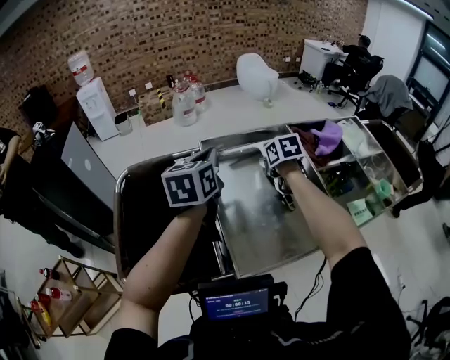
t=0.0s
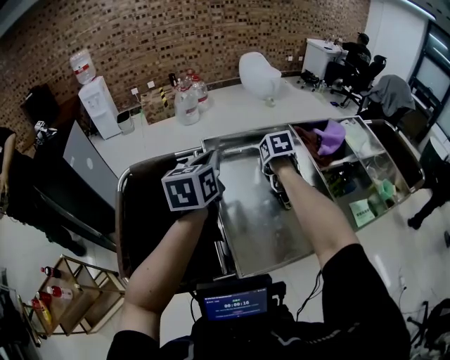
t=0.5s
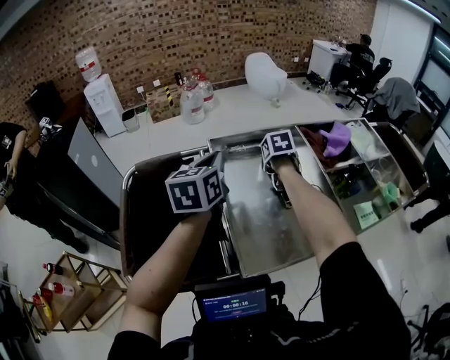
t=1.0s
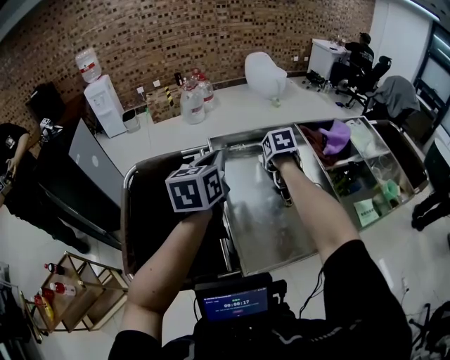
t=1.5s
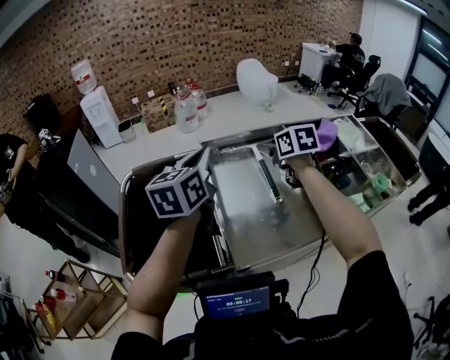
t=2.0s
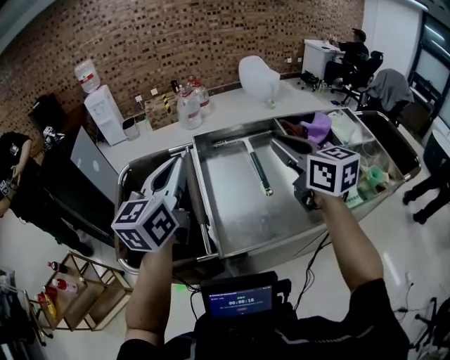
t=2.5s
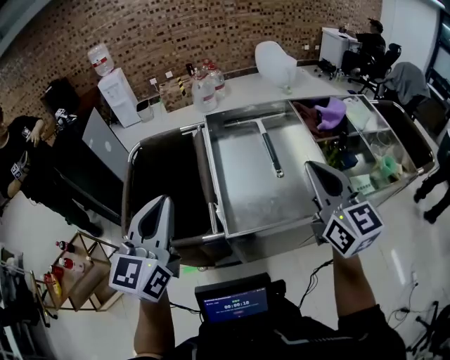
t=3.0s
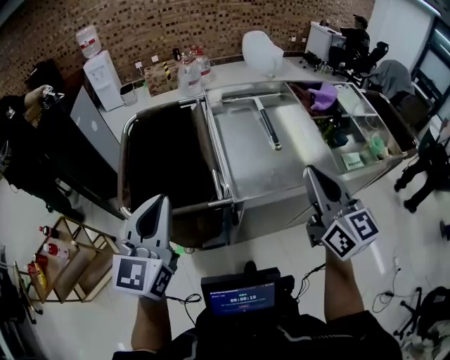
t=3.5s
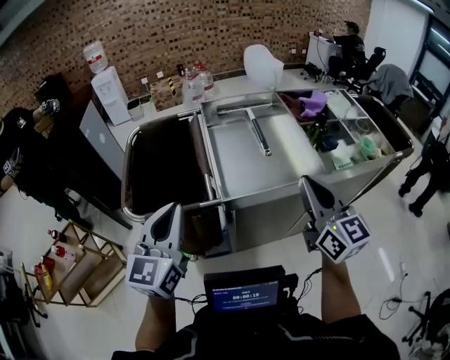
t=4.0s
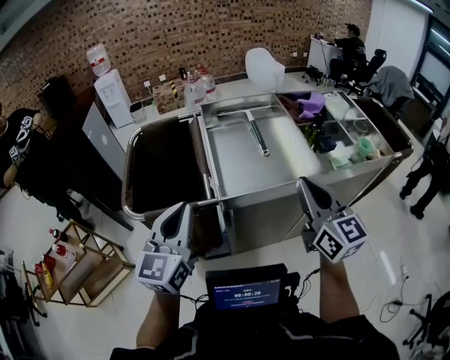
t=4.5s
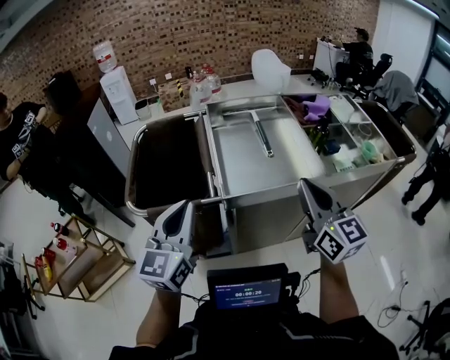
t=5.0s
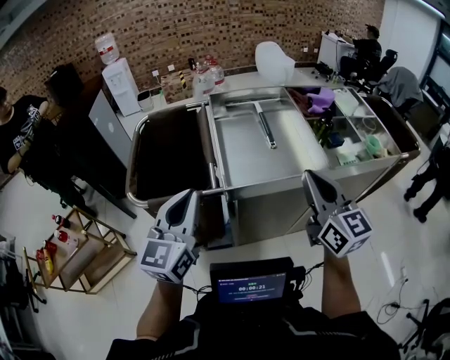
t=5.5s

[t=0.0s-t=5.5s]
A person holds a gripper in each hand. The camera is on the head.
t=0.0s to t=2.0s: The right gripper heads upward, covering roughly 10 cm, and opens. The left gripper travels backward and upward by roughly 10 cm.
t=2.0s to t=3.5s: Both grippers travel together backward, roughly 35 cm. The right gripper tilts its fingers some 40 degrees upward, and closes up, while the left gripper swivels roughly 20 degrees.
t=3.5s to t=5.5s: The left gripper moves to the right and backward, approximately 10 cm; the right gripper goes about 10 cm backward and to the right.

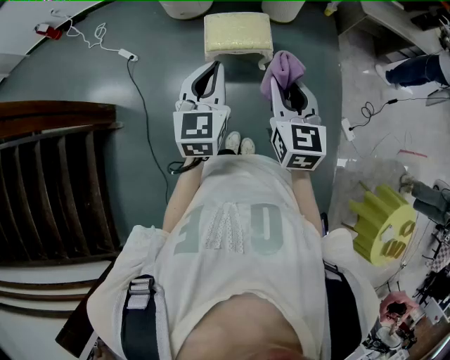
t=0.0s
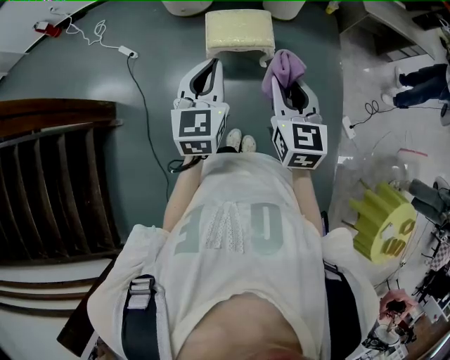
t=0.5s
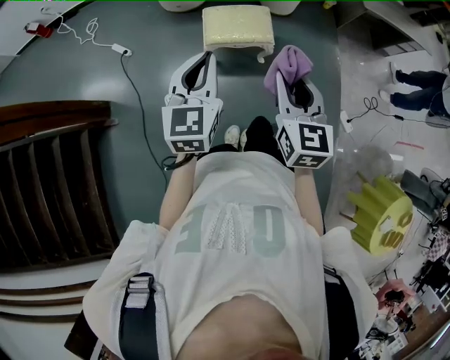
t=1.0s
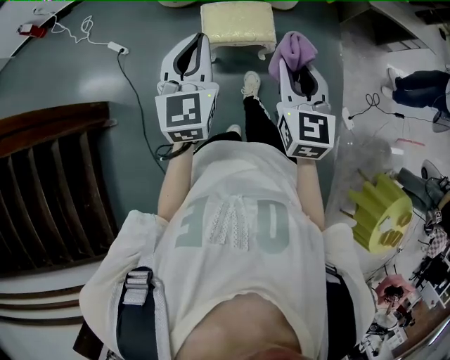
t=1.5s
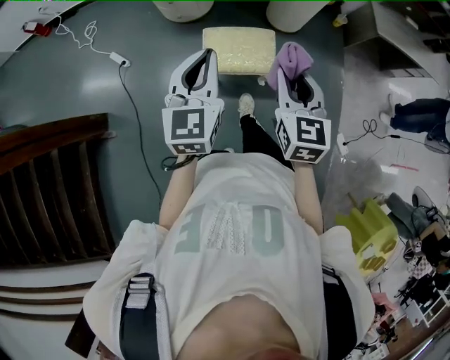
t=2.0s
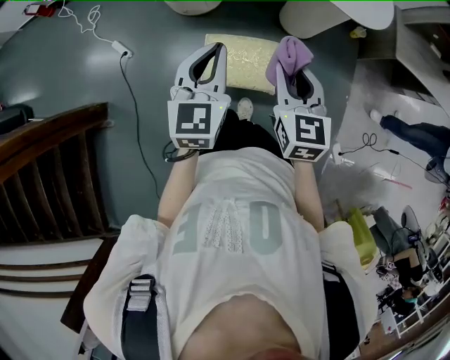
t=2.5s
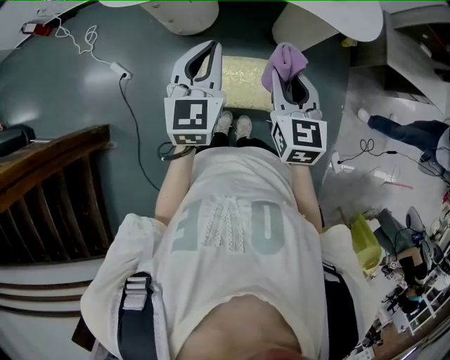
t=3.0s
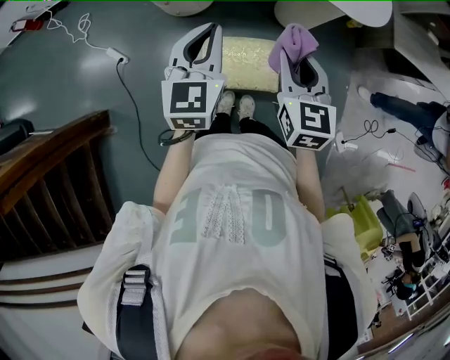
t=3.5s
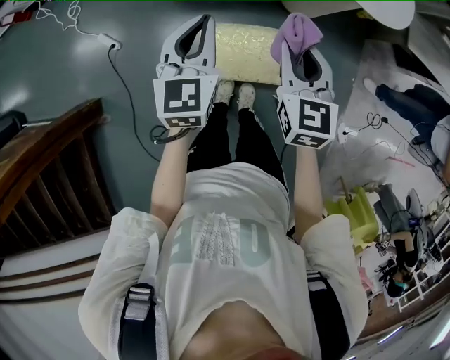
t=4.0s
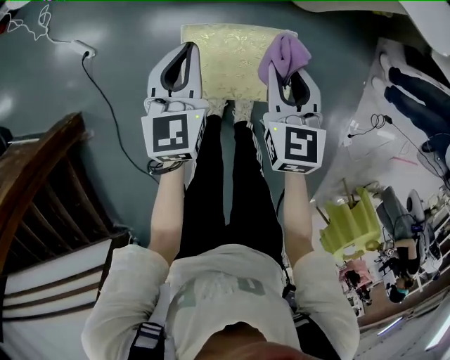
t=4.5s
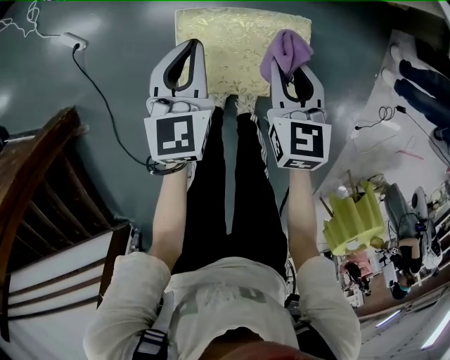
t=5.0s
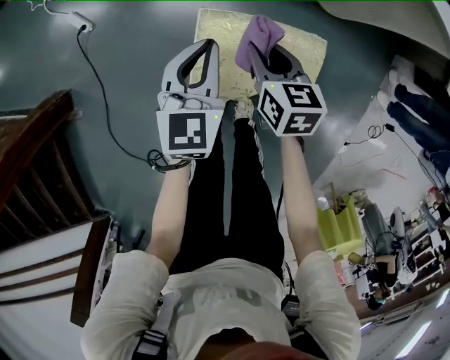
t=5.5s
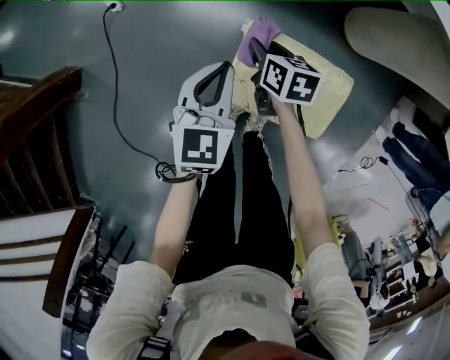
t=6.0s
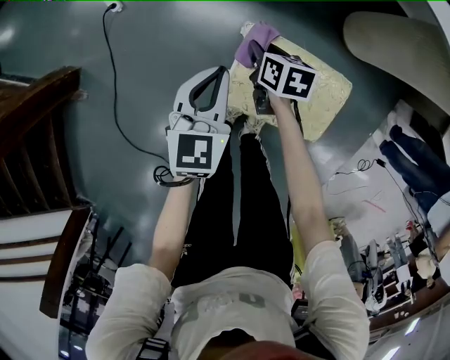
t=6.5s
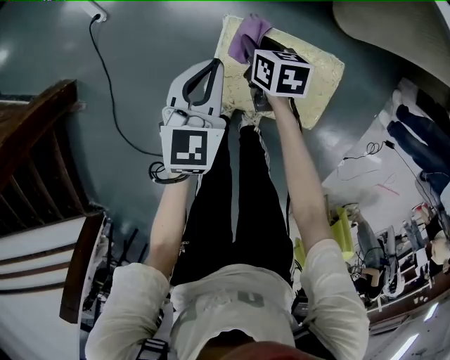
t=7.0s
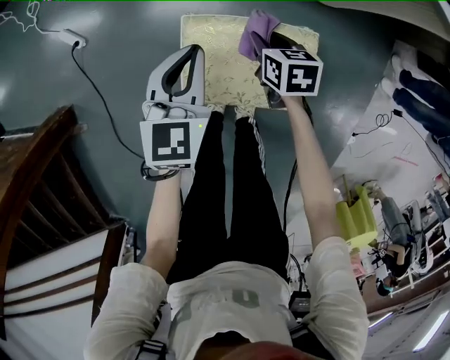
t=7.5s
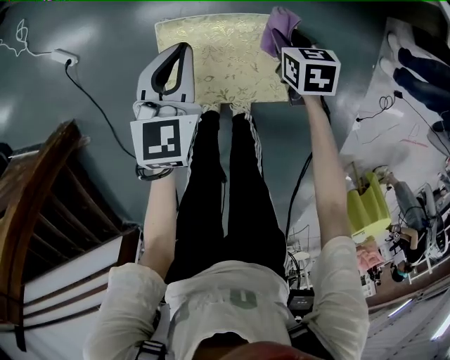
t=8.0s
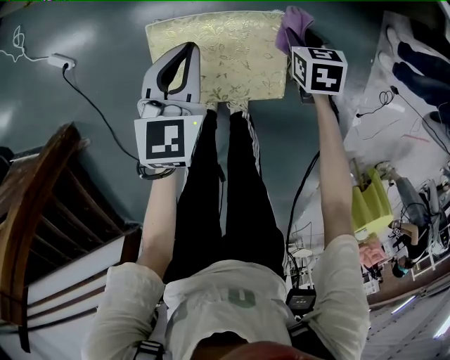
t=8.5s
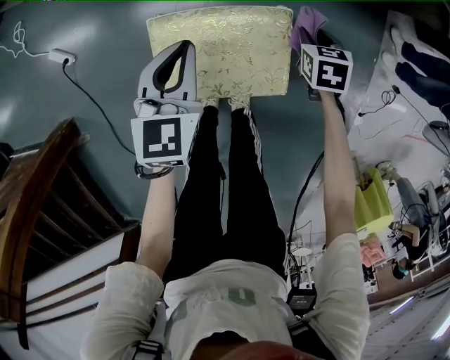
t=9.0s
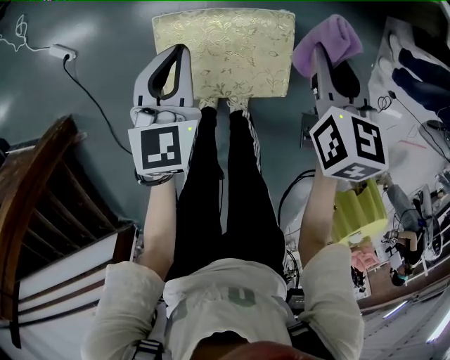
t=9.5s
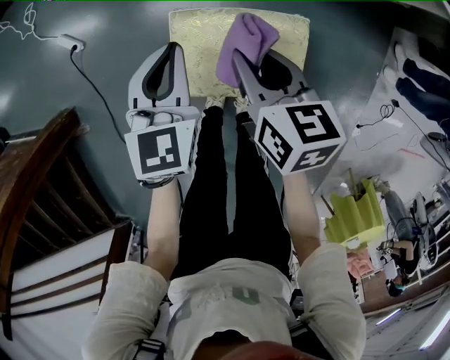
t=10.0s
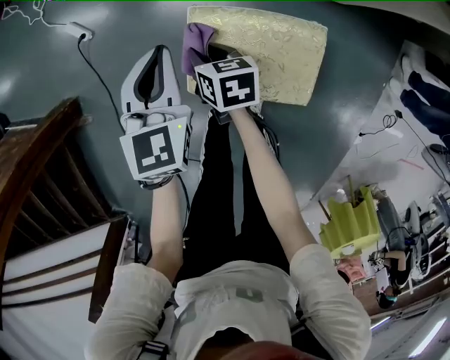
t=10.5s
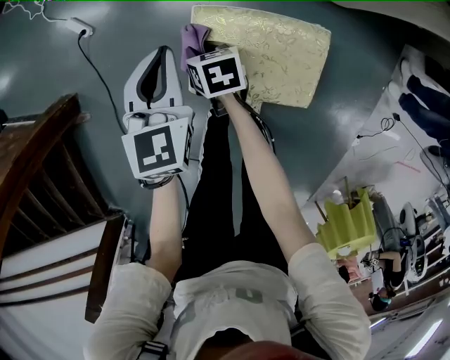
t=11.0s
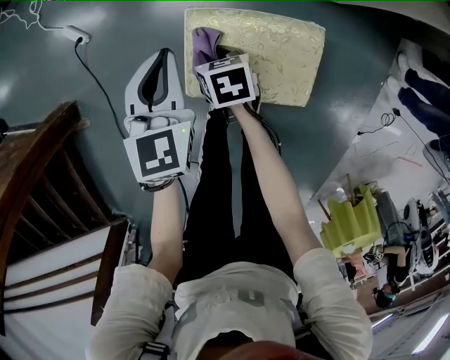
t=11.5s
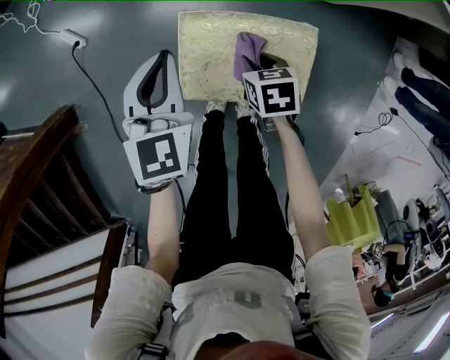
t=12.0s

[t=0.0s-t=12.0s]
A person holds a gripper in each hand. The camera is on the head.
t=0.0s to t=2.0s: The two grippers go about 20 cm forward.
t=2.0s to t=4.0s: The two grippers go some 25 cm forward.
t=4.0s to t=6.0s: Both grippers move downward and to the left, some 40 cm. The right gripper swivels some 50 degrees.
t=6.0s to t=8.0s: The left gripper shifts about 15 cm to the right. Meanwhile the right gripper moves to the right, some 25 cm.
t=8.0s to t=10.0s: The right gripper goes roughly 20 cm upward and to the left, and swivels roughly 20 degrees; the left gripper moves approximately 5 cm.
t=10.0s to t=12.0s: The right gripper is displaced downward by about 15 cm, and changes its angle by roughly 30 degrees.

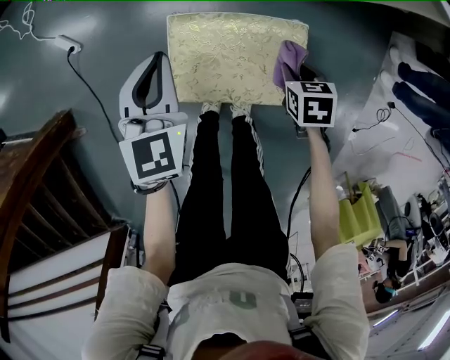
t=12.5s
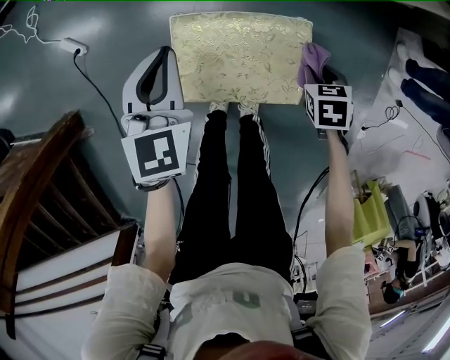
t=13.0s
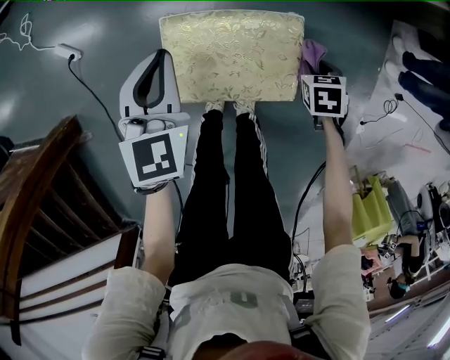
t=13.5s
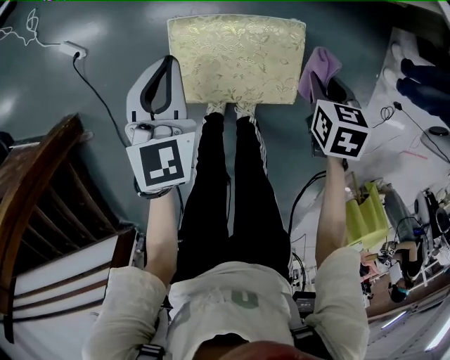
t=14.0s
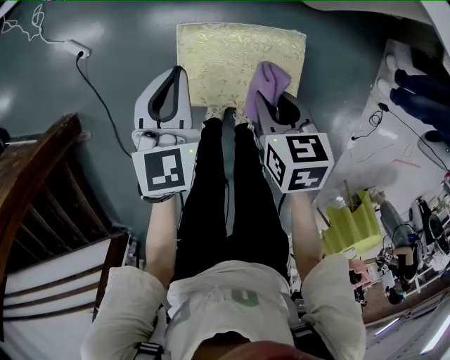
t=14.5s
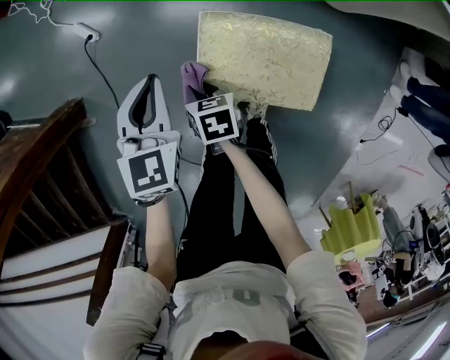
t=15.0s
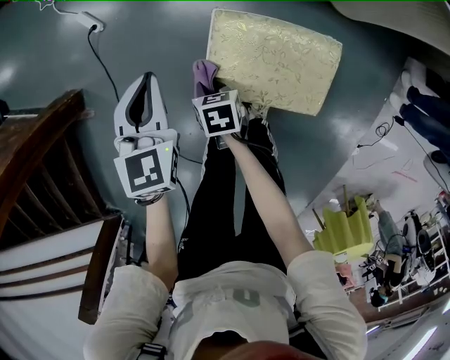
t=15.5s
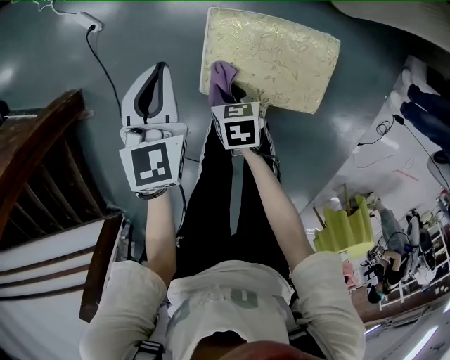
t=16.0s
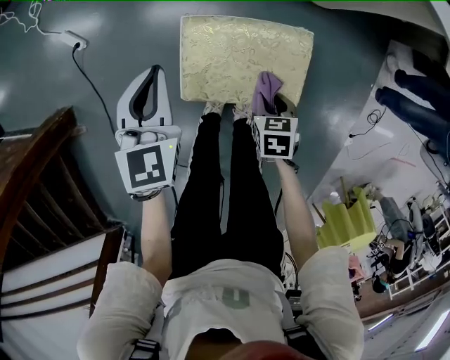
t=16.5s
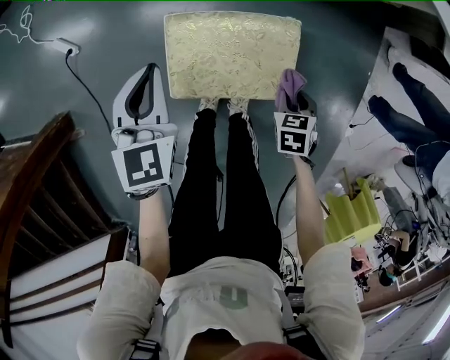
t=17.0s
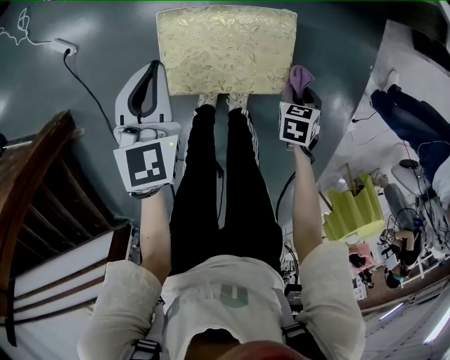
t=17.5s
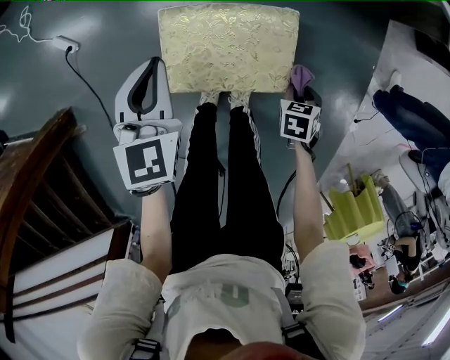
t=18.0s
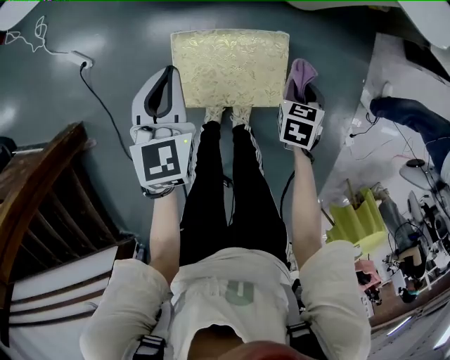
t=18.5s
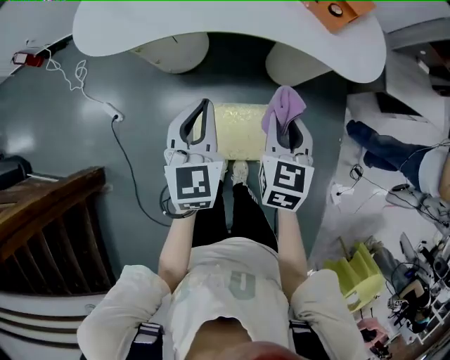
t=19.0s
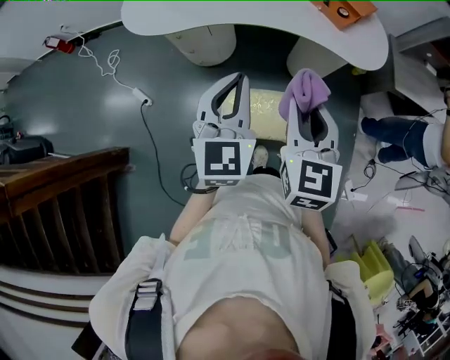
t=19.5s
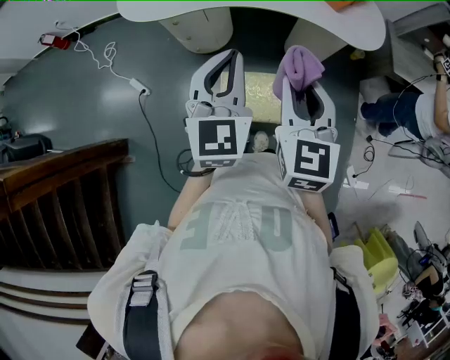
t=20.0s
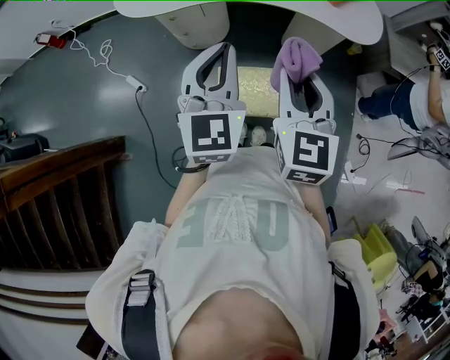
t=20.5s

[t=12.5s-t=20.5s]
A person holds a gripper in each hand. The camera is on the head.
t=12.5s to t=14.5s: The right gripper goes approximately 15 cm upward.
t=14.5s to t=16.5s: The right gripper heads downward, covering some 15 cm.
t=16.5s to t=18.5s: The left gripper moves roughly 10 cm; the right gripper ends up roughly 15 cm from where it was.
t=18.5s to t=20.5s: The two grippers go roughly 50 cm upward. The right gripper angles its fingers upward, by about 50 degrees, while the left gripper changes its angle by some 20 degrees.

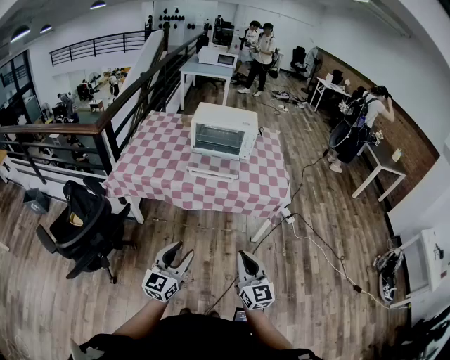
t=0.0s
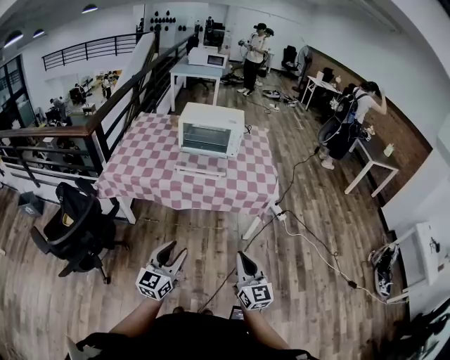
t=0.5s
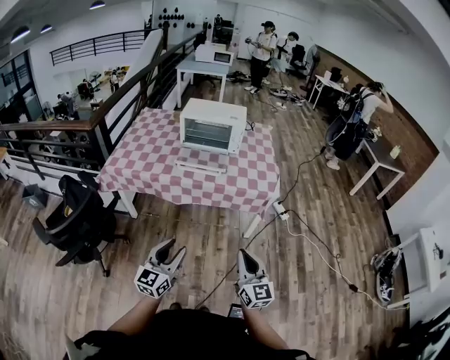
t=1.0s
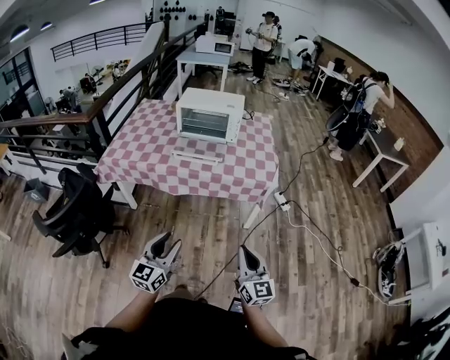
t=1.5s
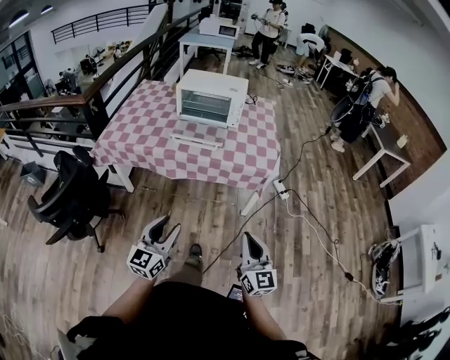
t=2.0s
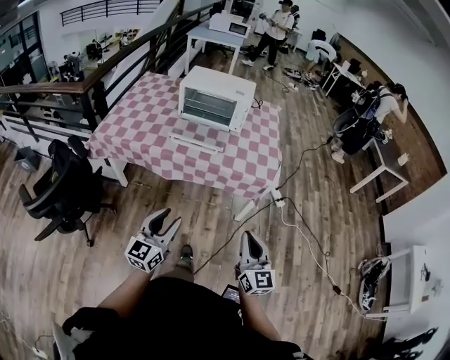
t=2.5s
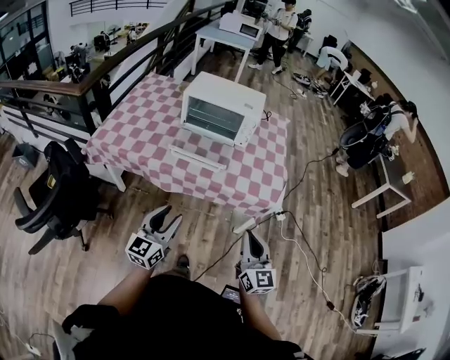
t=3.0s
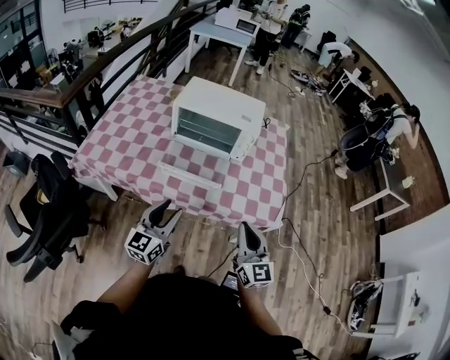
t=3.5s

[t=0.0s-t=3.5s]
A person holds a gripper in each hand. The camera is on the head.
t=0.0s to t=2.0s: The left gripper goes roughly 10 cm to the right. The right gripper is displaced to the right by roughly 15 cm.
t=2.0s to t=3.5s: The grippers both shift forward by roughly 35 cm.
